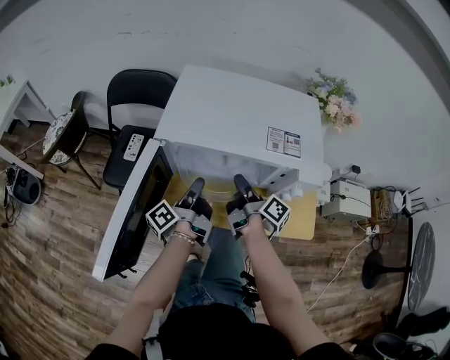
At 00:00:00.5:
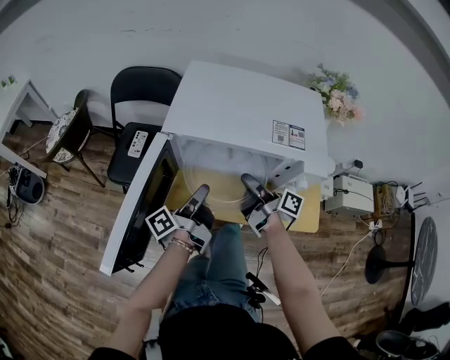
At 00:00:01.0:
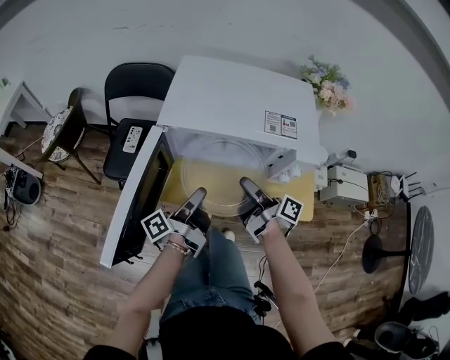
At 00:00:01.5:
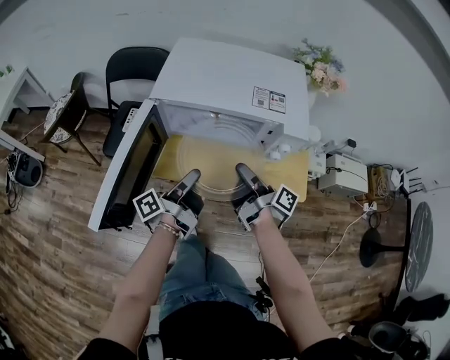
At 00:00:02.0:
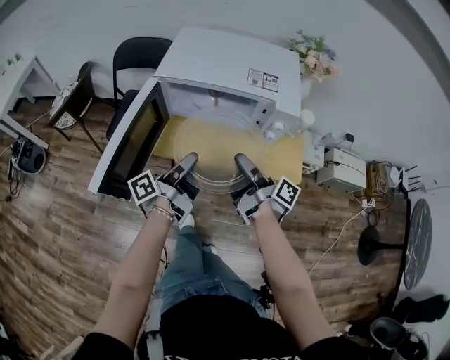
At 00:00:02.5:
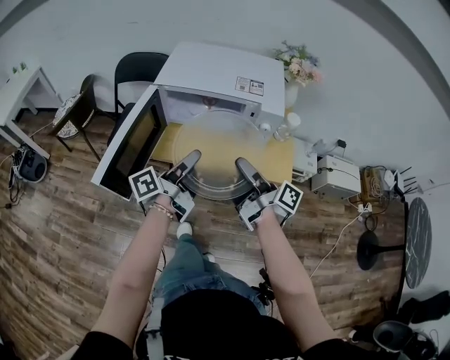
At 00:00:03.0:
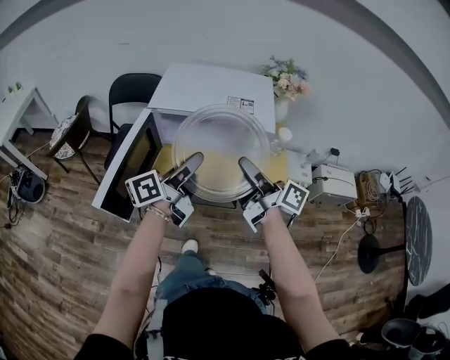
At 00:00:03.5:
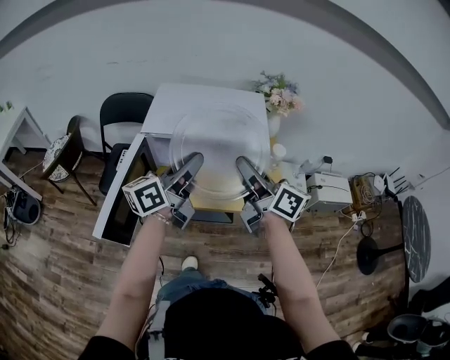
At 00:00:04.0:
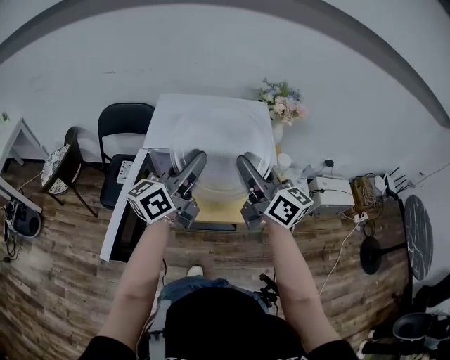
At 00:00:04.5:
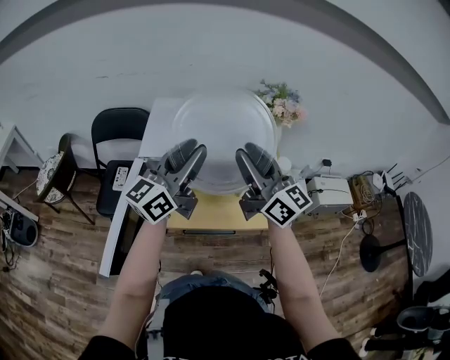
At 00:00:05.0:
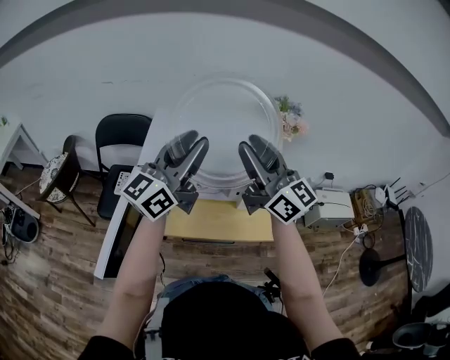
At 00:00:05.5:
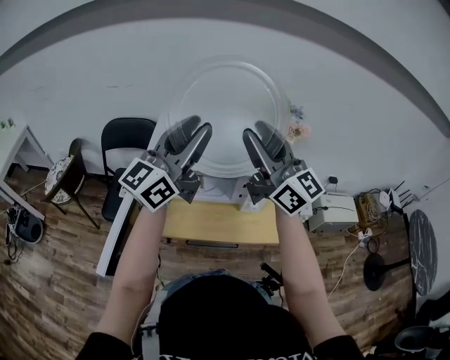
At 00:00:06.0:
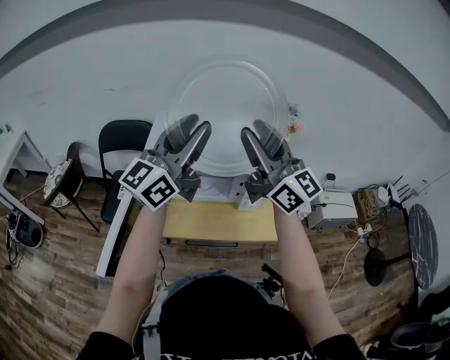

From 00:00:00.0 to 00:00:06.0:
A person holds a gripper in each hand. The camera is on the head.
From 00:00:00.0 to 00:00:02.0: Both grippers move backward and upward, approximately 20 cm.
From 00:00:02.0 to 00:00:04.0: The left gripper is displaced upward and forward by roughly 20 cm, and rotates around the line of its fingers by approximately 50 degrees, clockwise from behind. Meanwhile the right gripper shifts roughly 20 cm upward, and rolls counterclockwise, seen from behind, by approximately 60 degrees.
From 00:00:04.0 to 00:00:06.0: Both grippers travel together upward, some 15 cm. The right gripper turns by roughly 30 degrees. The left gripper changes its angle by some 30 degrees.

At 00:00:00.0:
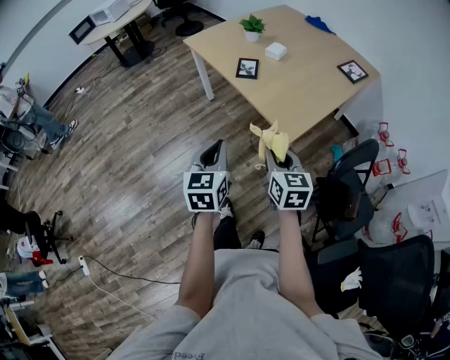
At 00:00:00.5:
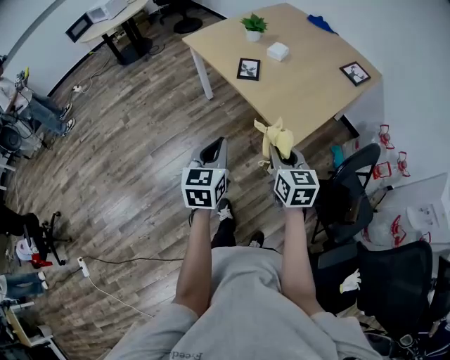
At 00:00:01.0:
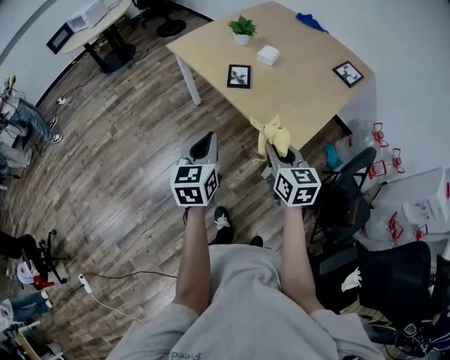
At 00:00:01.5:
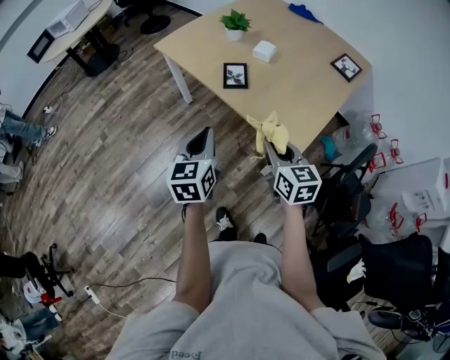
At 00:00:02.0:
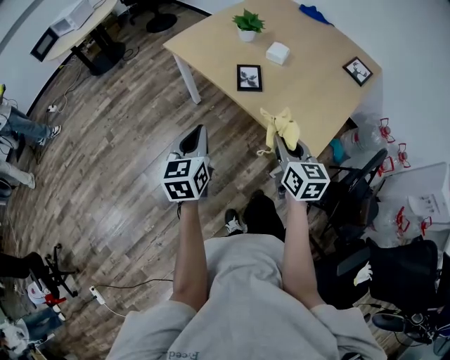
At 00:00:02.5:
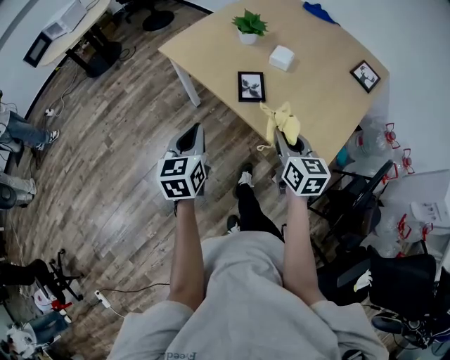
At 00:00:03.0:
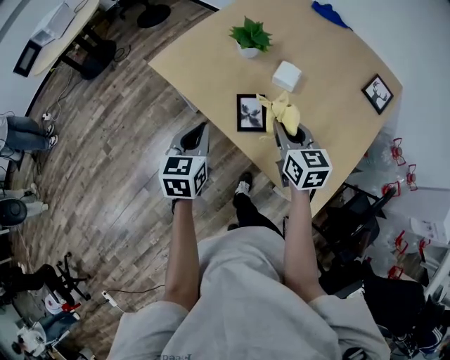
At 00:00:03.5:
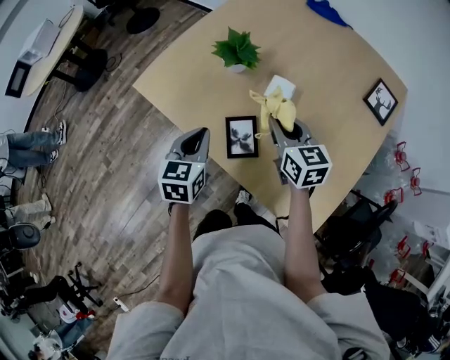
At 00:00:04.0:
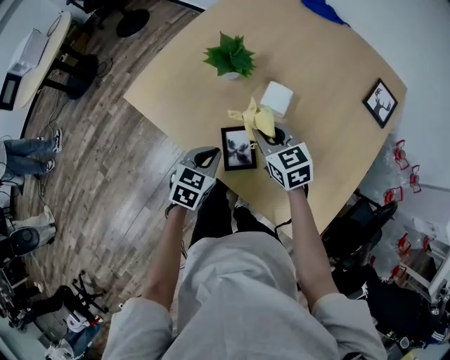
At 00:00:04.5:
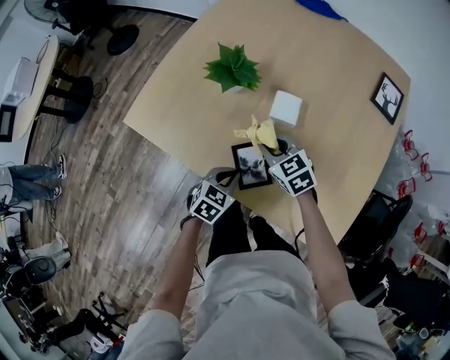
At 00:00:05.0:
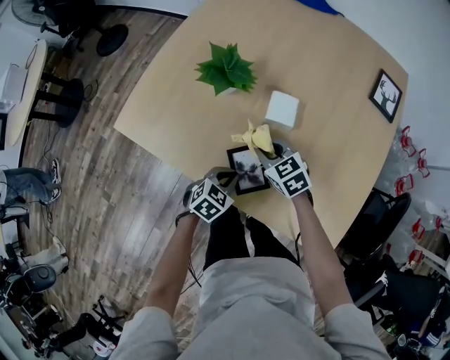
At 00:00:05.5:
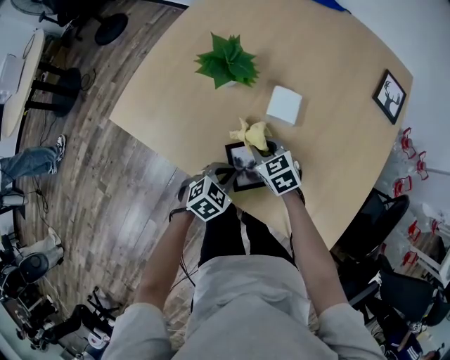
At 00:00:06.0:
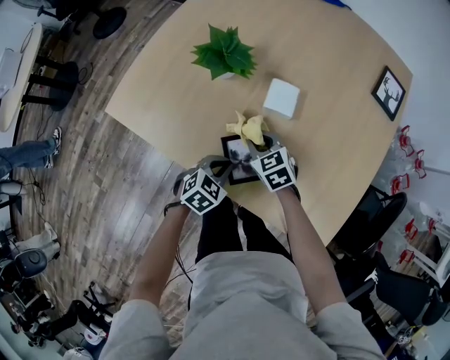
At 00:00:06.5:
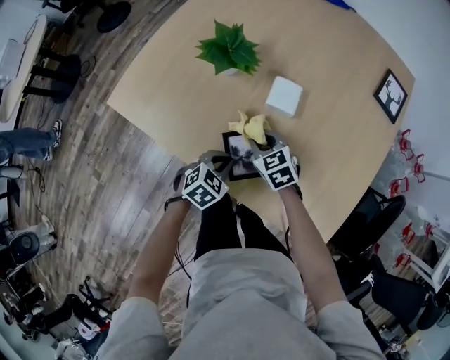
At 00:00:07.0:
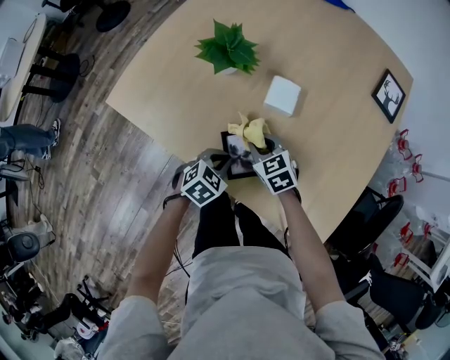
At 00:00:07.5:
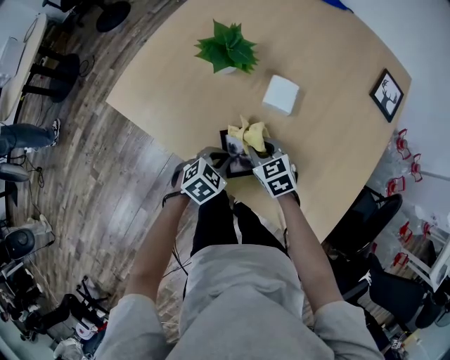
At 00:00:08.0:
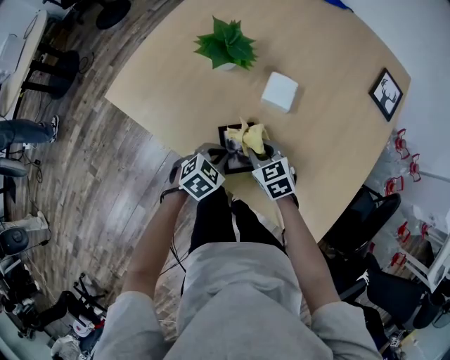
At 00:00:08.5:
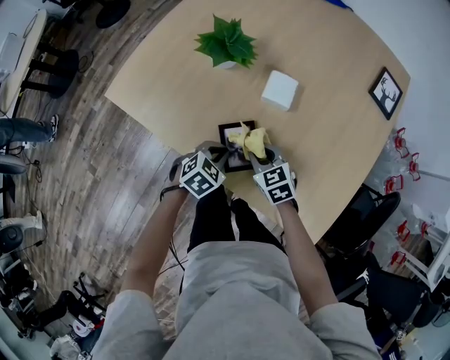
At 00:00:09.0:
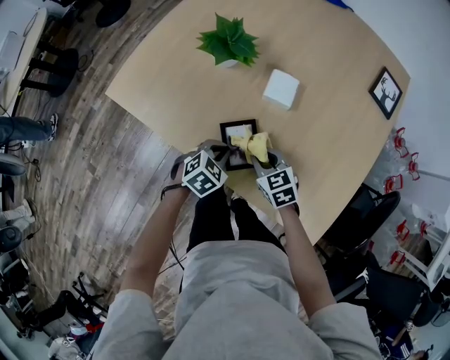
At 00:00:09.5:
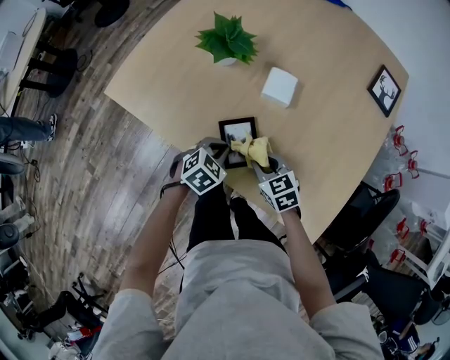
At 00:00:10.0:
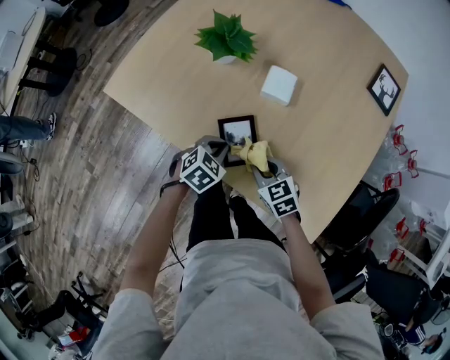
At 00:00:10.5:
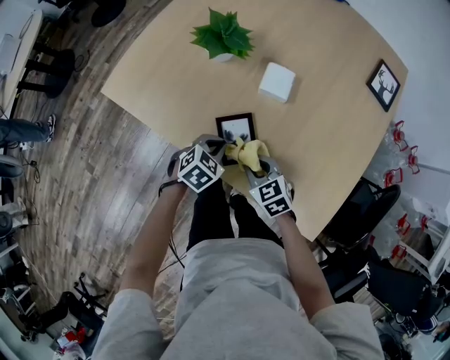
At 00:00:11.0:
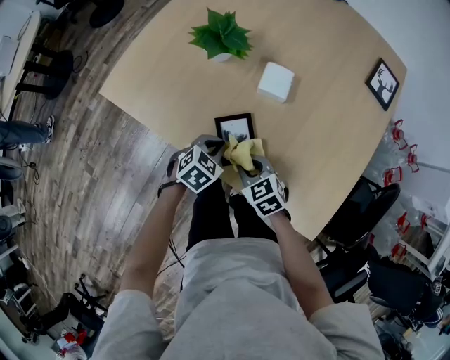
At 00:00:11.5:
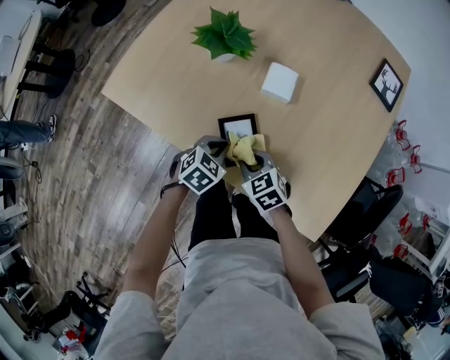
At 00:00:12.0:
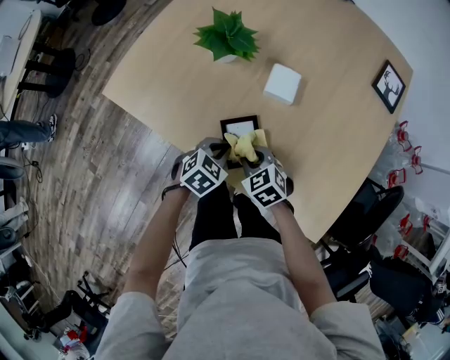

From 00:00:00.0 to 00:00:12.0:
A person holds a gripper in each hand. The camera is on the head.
From 00:00:00.0 to 00:00:02.0: The left gripper is displaced forward and to the left by some 25 cm; the right gripper goes about 20 cm forward.
From 00:00:02.0 to 00:00:04.0: The left gripper is displaced forward and downward by roughly 40 cm, and rotates approximately 40 degrees. Meanwhile the right gripper moves forward, approximately 40 cm, and rotates roughly 20 degrees.
From 00:00:04.0 to 00:00:06.0: The grippers both shift downward by roughly 15 cm. The left gripper turns by some 30 degrees.
From 00:00:06.0 to 00:00:08.0: The right gripper ends up some 5 cm from where it was.
From 00:00:08.0 to 00:00:10.0: The right gripper moves backward, some 5 cm.
From 00:00:10.0 to 00:00:12.0: The right gripper shifts by about 5 cm.

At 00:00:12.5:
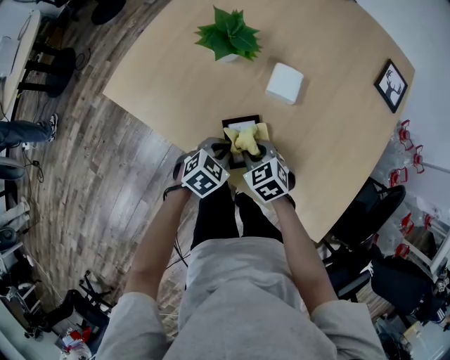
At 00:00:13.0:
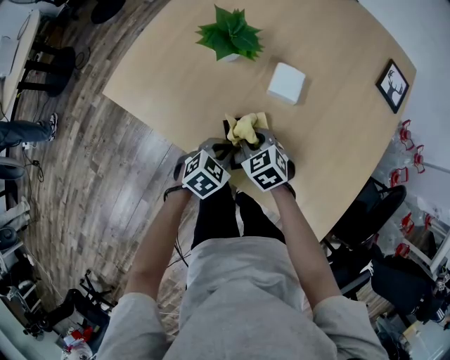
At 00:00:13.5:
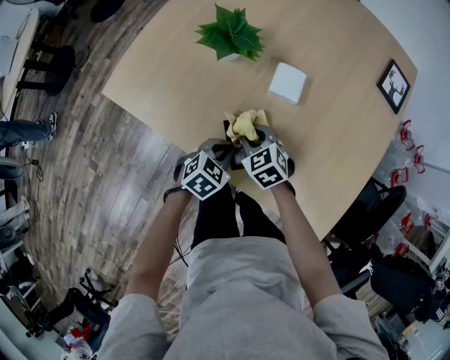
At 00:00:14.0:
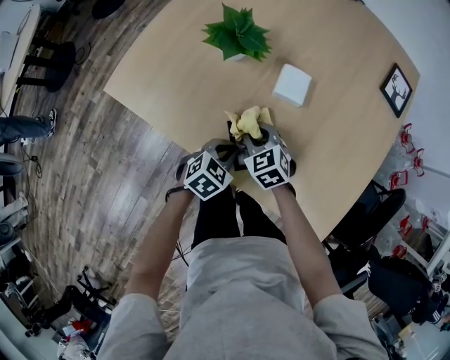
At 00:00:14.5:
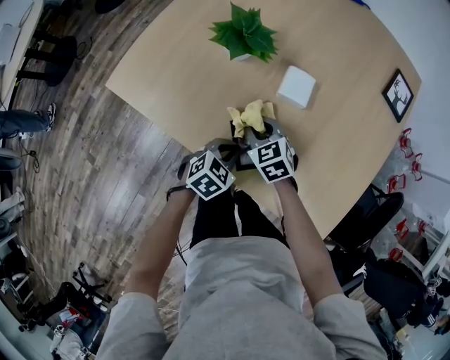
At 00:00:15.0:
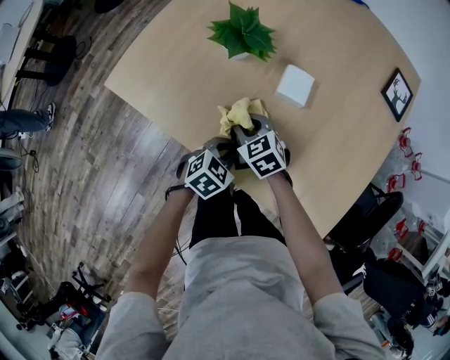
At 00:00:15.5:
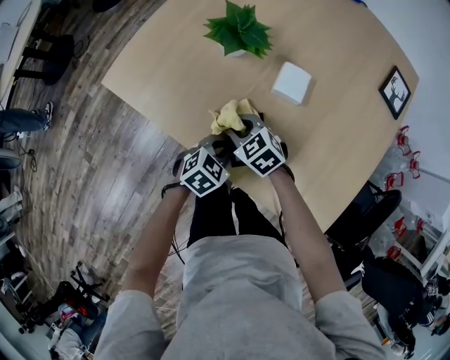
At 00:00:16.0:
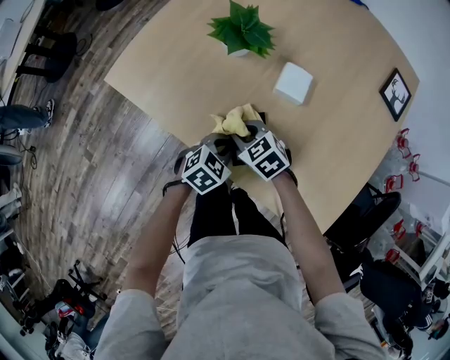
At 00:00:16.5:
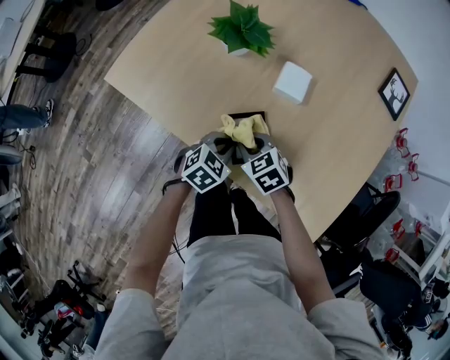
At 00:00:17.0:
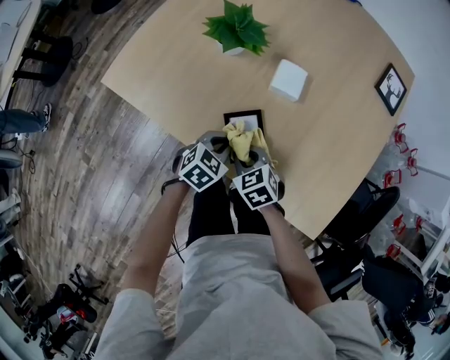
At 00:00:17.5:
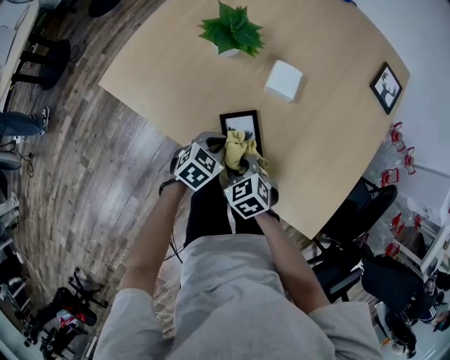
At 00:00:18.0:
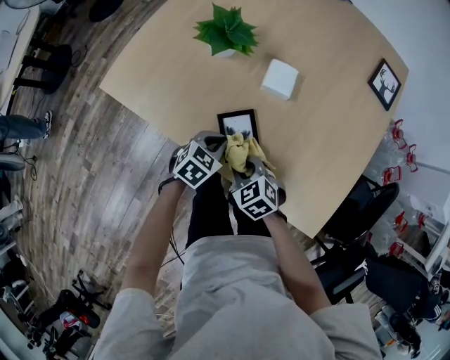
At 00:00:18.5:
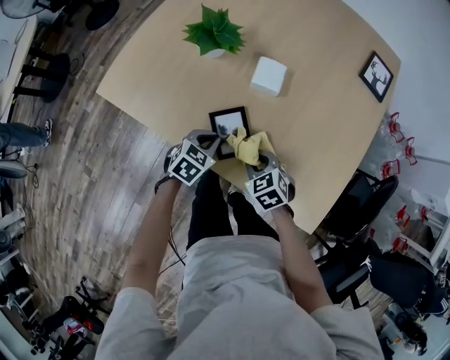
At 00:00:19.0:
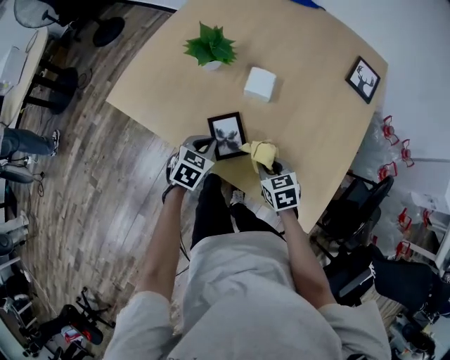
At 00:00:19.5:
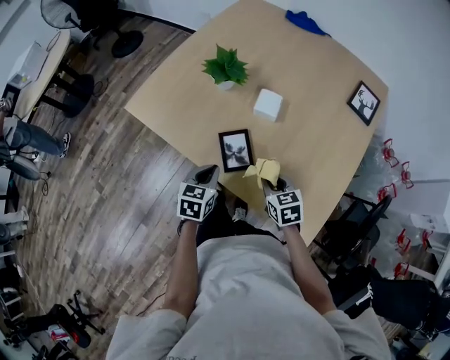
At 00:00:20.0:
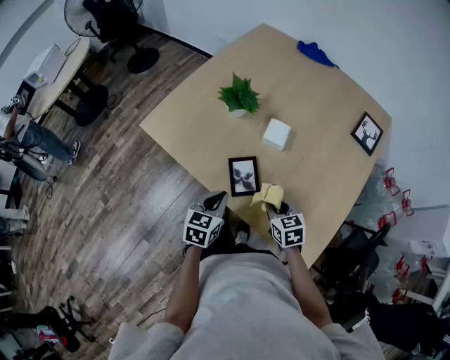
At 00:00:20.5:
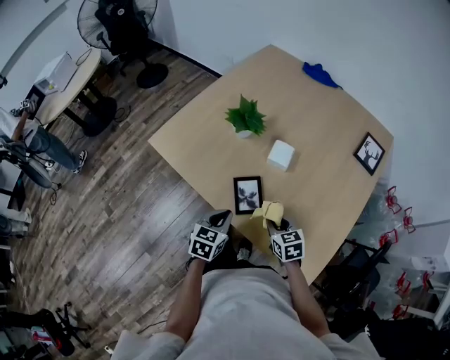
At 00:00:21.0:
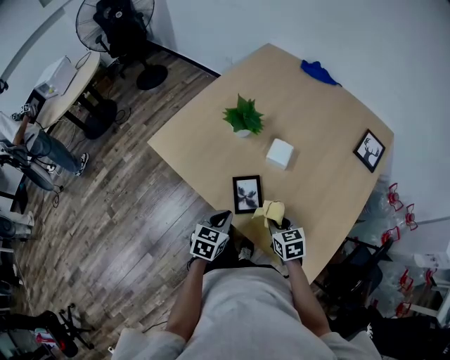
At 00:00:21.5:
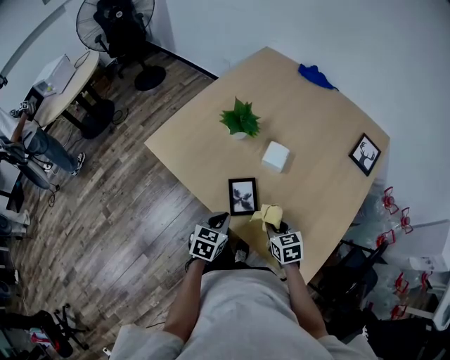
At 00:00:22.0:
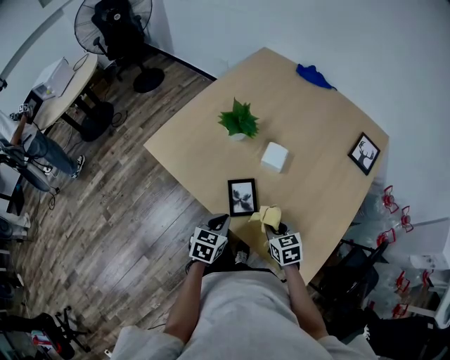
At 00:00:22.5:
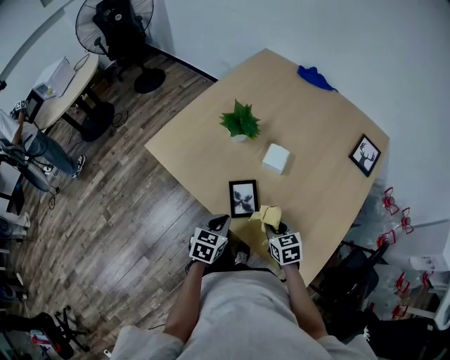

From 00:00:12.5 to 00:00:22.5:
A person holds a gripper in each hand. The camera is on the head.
From 00:00:12.5 to 00:00:14.5: The right gripper is displaced forward by roughly 5 cm.
From 00:00:14.5 to 00:00:16.5: The right gripper goes about 5 cm backward.
From 00:00:16.5 to 00:00:18.5: The right gripper is displaced to the right and backward by some 10 cm.
From 00:00:18.5 to 00:00:20.5: The left gripper goes about 15 cm upward and backward, and swivels approximately 30 degrees, while the right gripper moves upward, approximately 10 cm.
From 00:00:20.5 to 00:00:22.5: There are only small adjustments of the grippers.
